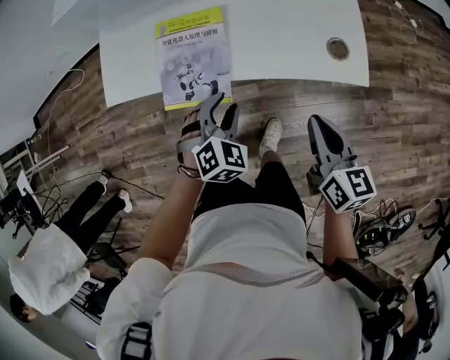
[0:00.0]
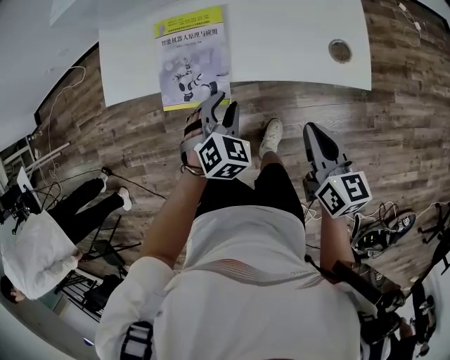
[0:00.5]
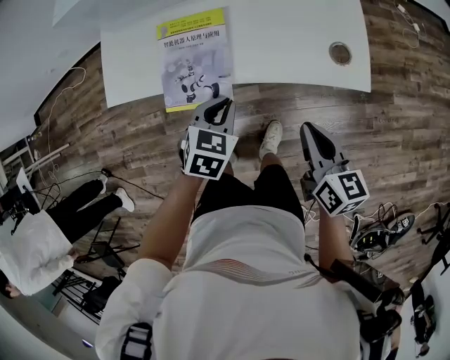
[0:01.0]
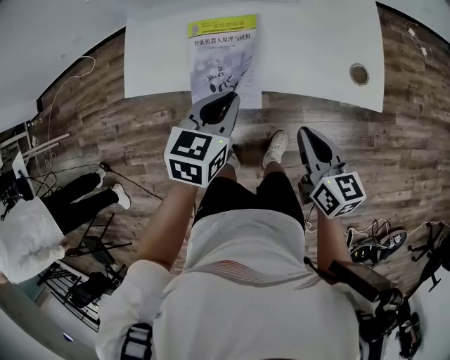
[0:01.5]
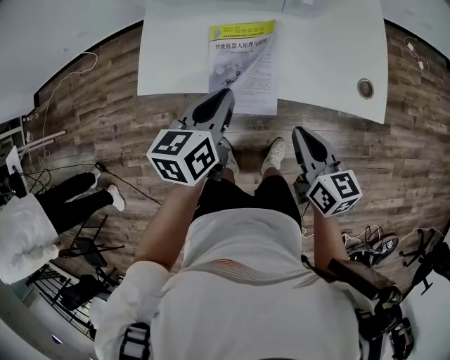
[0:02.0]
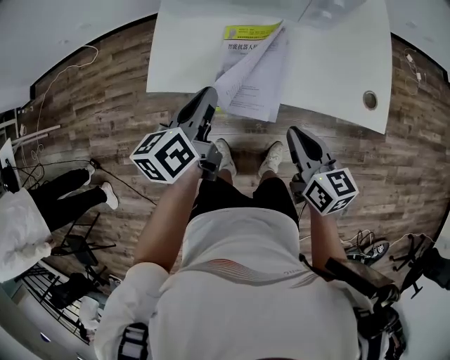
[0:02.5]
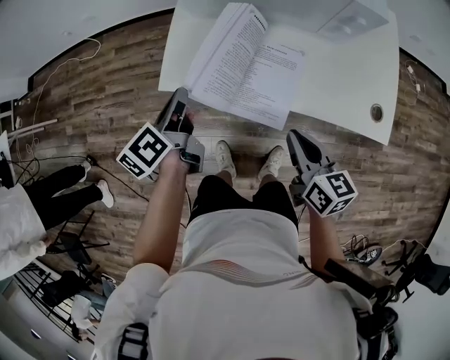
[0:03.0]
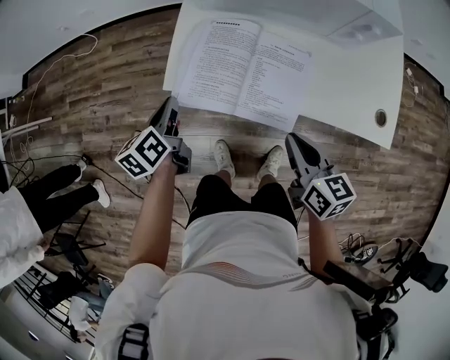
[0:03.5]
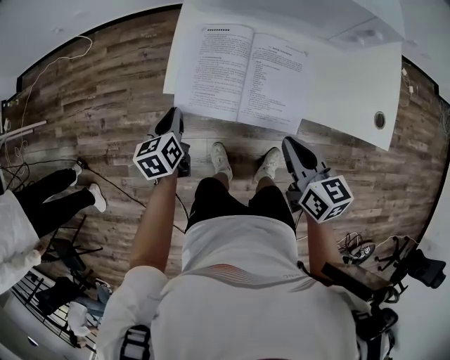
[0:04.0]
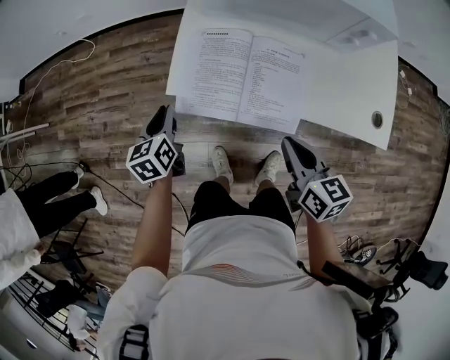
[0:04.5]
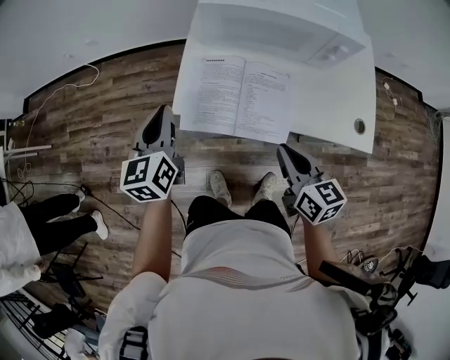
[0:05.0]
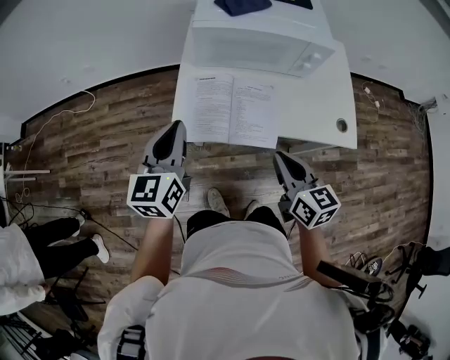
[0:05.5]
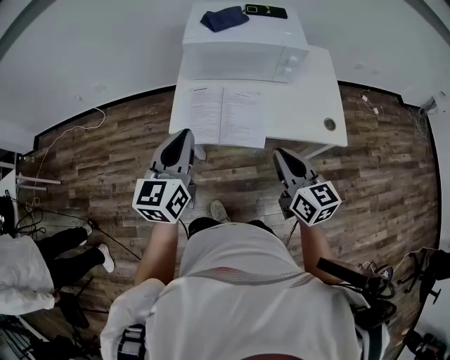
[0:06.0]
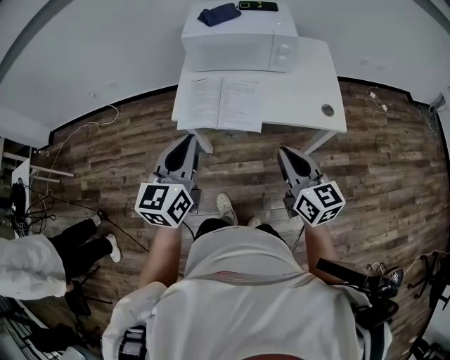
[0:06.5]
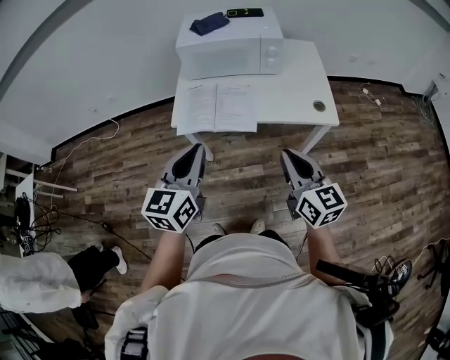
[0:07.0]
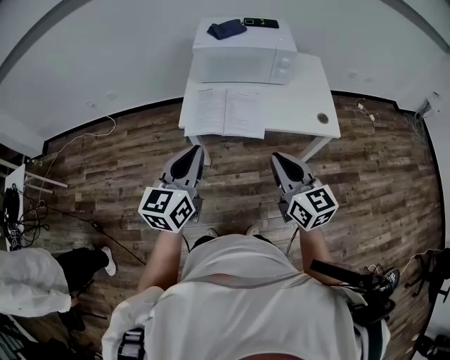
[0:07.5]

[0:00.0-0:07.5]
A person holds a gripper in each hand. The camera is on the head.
0:00.0 to 0:02.0: The right gripper travels to the left by some 15 cm. Meanwhile the left gripper heads upward, to the left and forward, covering about 20 cm, rotates around the line of its fingers by approximately 60 degrees, counterclockwise from behind, and closes its fingers.
0:02.0 to 0:04.0: The left gripper is displaced to the left and downward by about 30 cm, and swivels approximately 30 degrees. The right gripper moves to the left, roughly 15 cm.
0:04.0 to 0:05.5: The left gripper shifts approximately 30 cm upward, and angles its fingers upward, by approximately 30 degrees. The right gripper travels upward by roughly 10 cm.
0:05.5 to 0:07.5: The left gripper heads backward, covering some 20 cm, while the right gripper goes some 20 cm backward and upward.

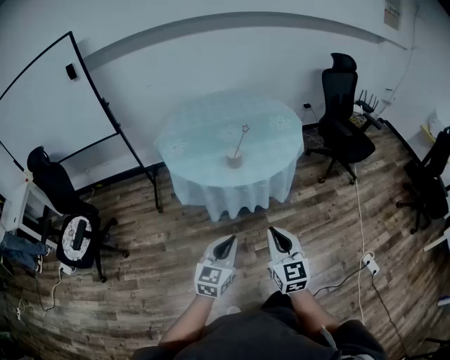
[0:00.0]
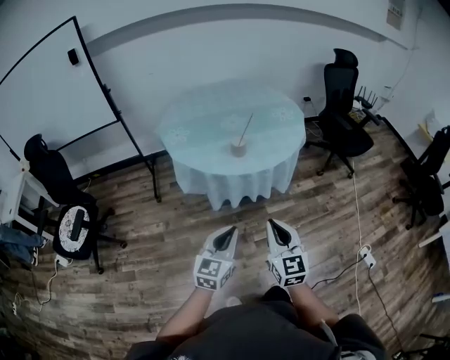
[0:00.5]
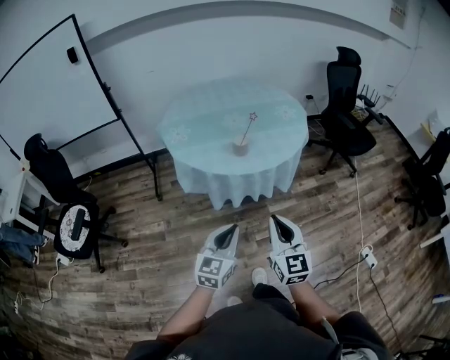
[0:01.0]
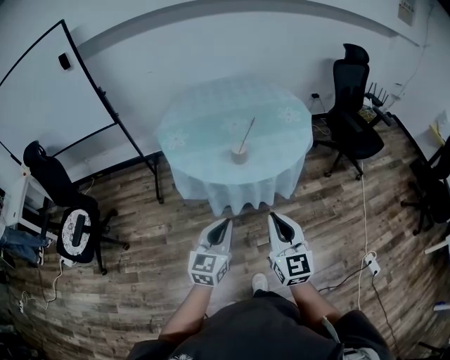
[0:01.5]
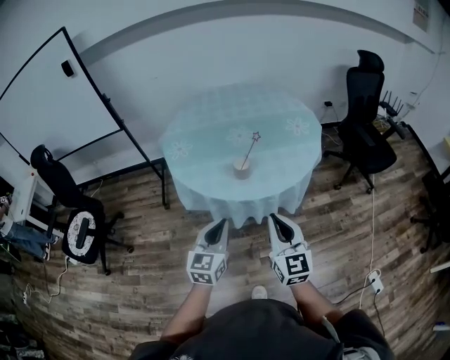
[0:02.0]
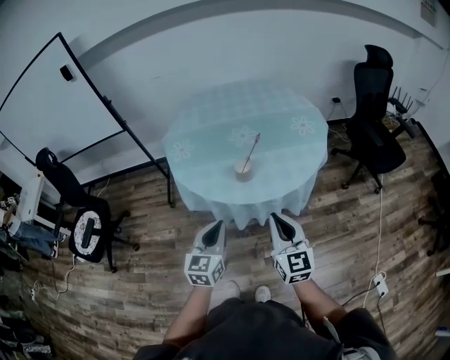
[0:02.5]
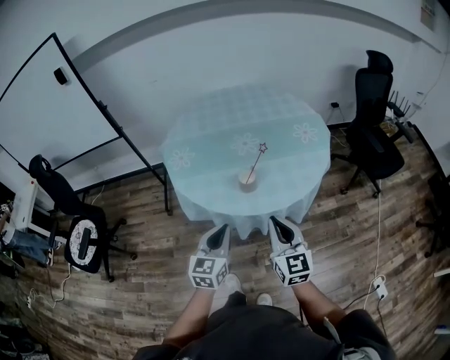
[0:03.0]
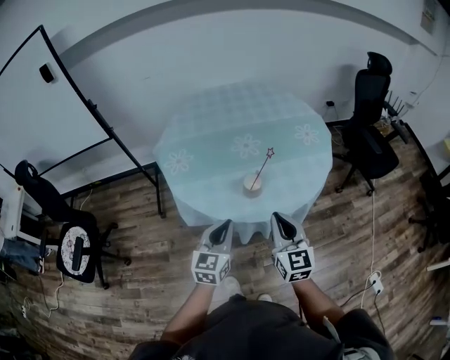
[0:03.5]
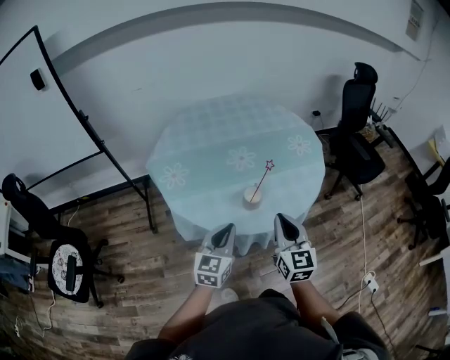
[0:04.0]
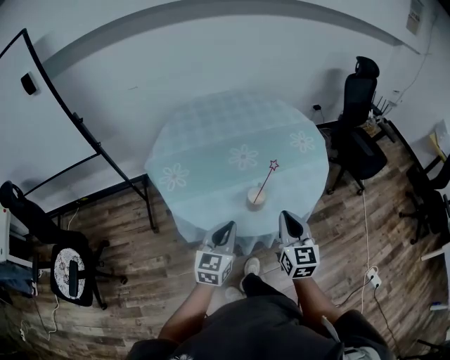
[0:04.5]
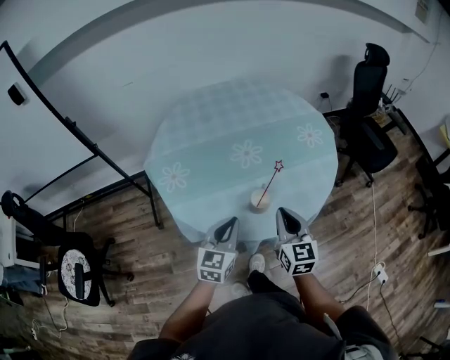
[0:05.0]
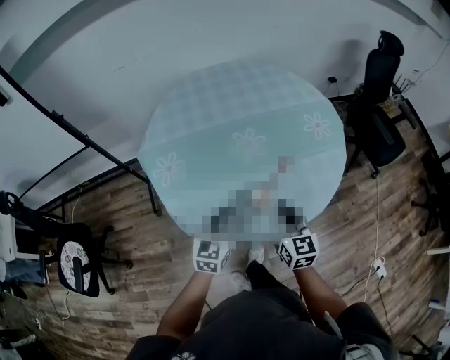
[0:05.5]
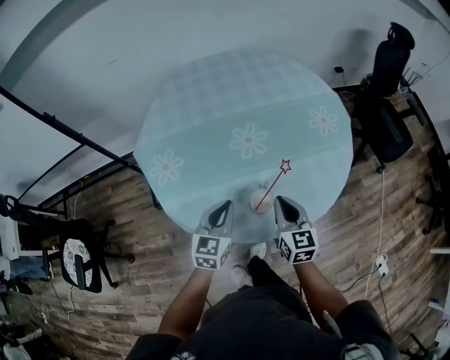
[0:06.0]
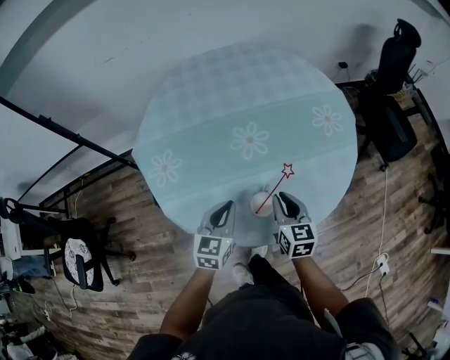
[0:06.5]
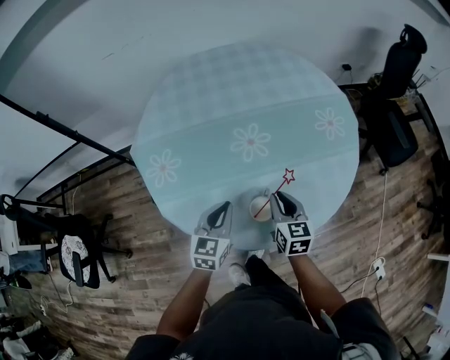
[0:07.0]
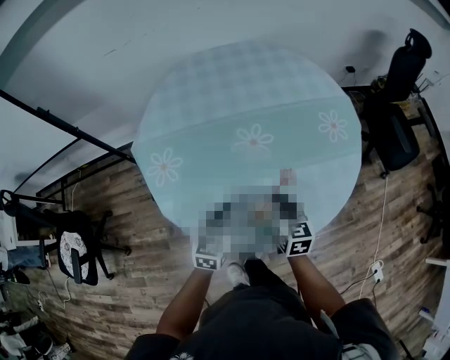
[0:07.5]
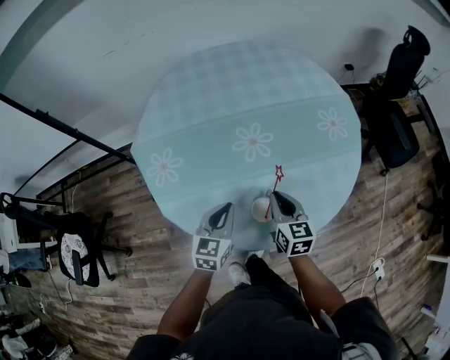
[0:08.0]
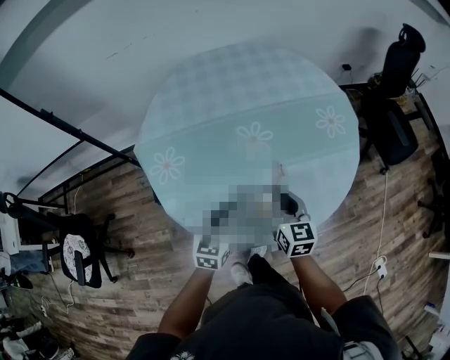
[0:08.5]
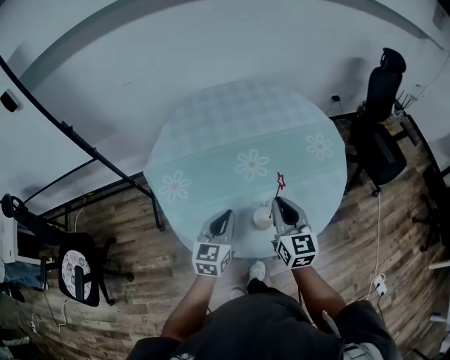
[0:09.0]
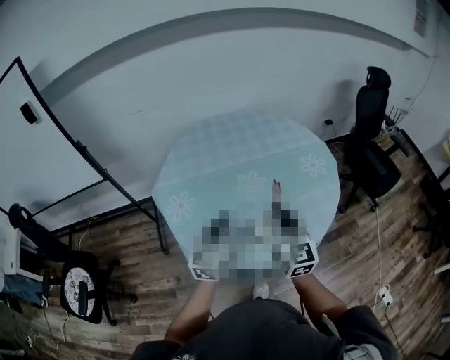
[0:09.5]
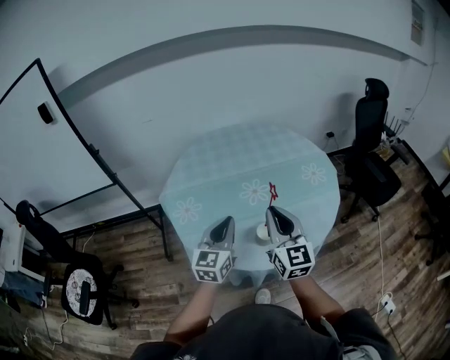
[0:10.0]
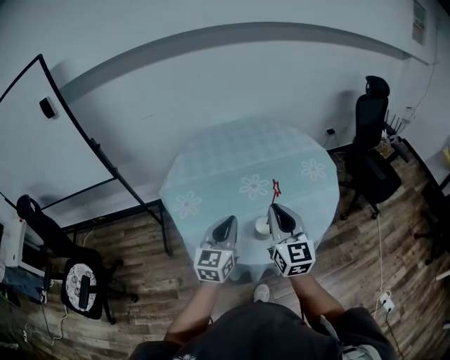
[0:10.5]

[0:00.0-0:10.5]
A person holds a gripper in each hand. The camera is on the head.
0:00.0 to 0:02.0: The two grippers go approximately 20 cm forward.
0:02.0 to 0:04.0: Both grippers travel together forward and to the left, some 20 cm.
0:04.0 to 0:06.5: Both grippers move forward and downward, approximately 25 cm. The right gripper rotates roughly 20 degrees.
0:06.5 to 0:08.5: There are only small adjustments of the grippers.
0:08.5 to 0:10.5: The grippers both shift upward and backward by about 25 cm. The left gripper changes its angle by some 20 degrees. The right gripper rotates about 30 degrees.

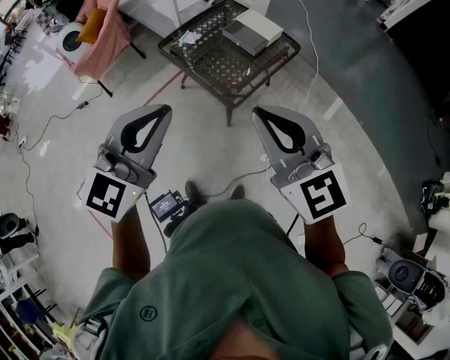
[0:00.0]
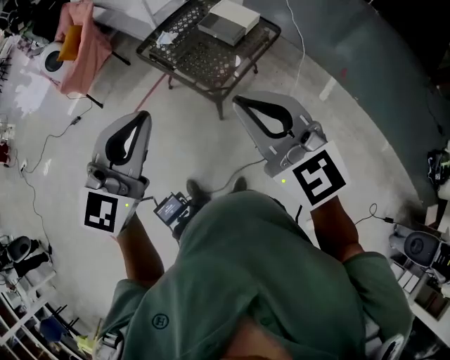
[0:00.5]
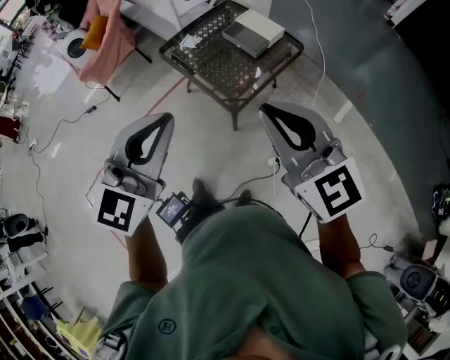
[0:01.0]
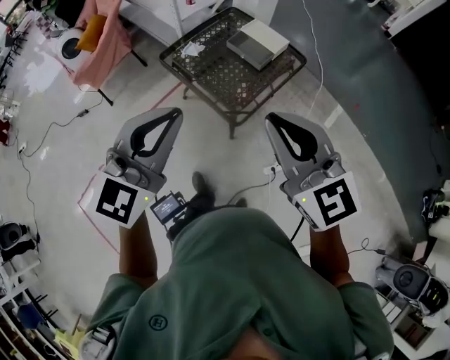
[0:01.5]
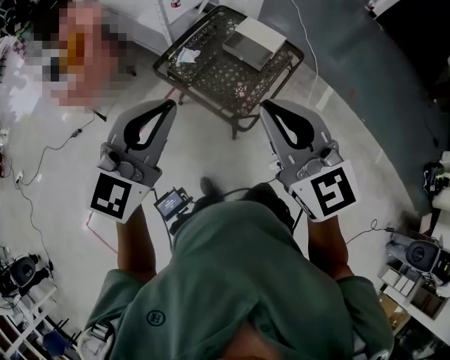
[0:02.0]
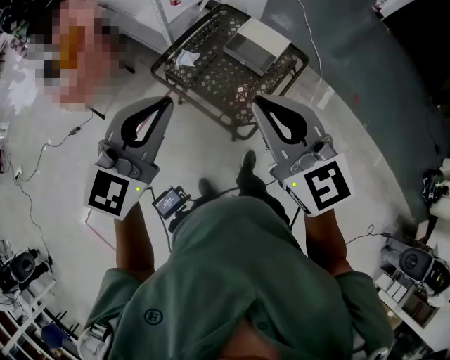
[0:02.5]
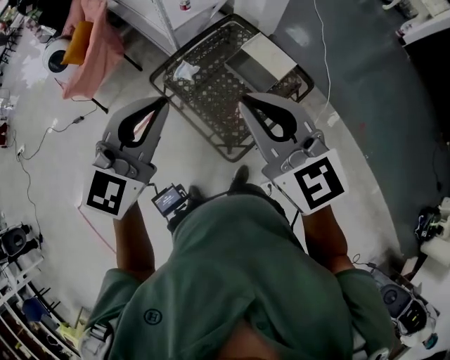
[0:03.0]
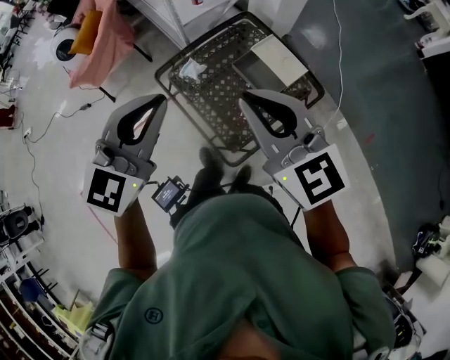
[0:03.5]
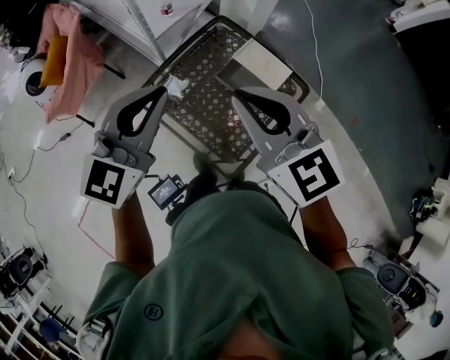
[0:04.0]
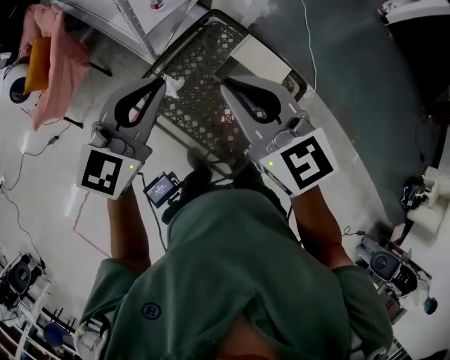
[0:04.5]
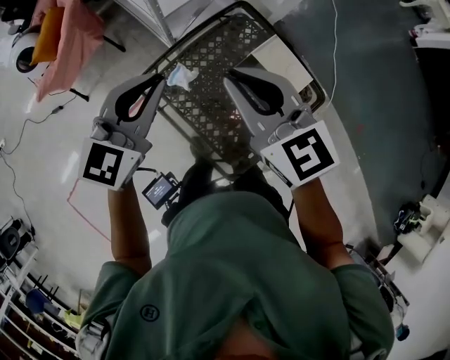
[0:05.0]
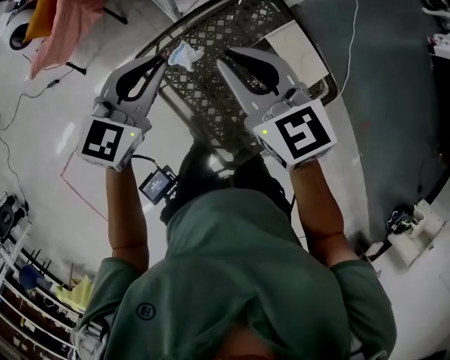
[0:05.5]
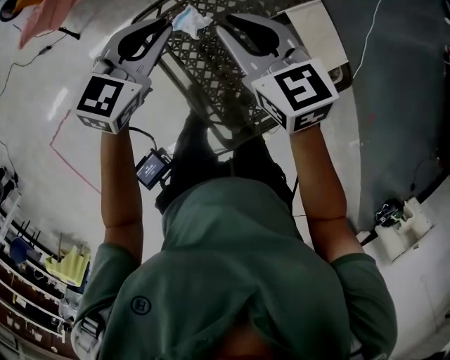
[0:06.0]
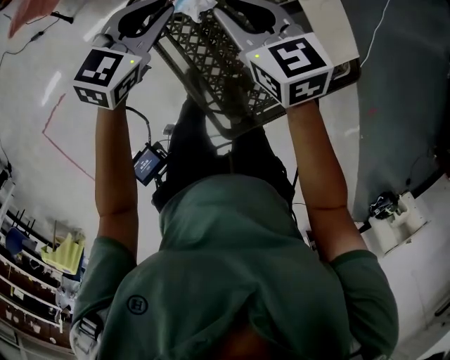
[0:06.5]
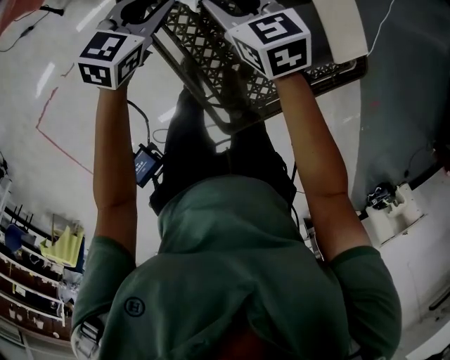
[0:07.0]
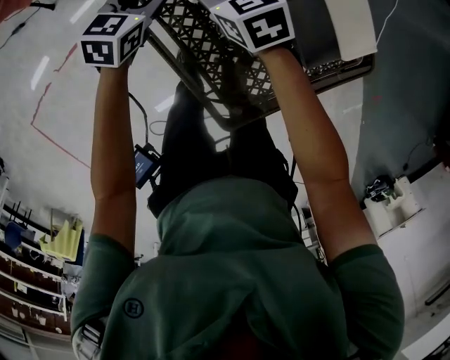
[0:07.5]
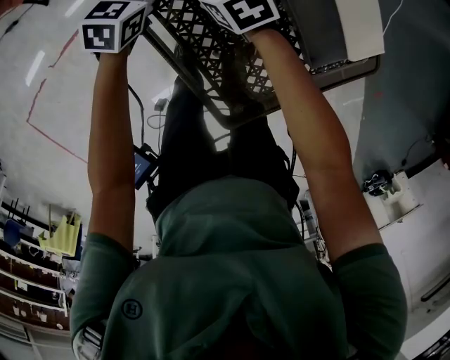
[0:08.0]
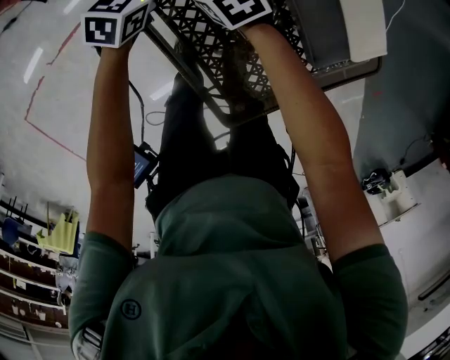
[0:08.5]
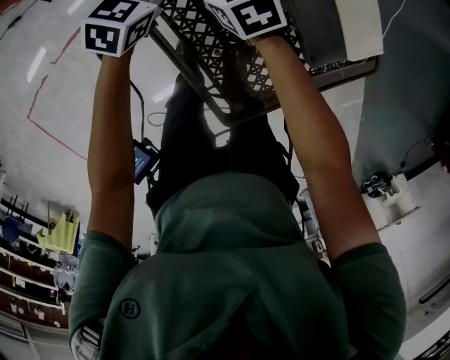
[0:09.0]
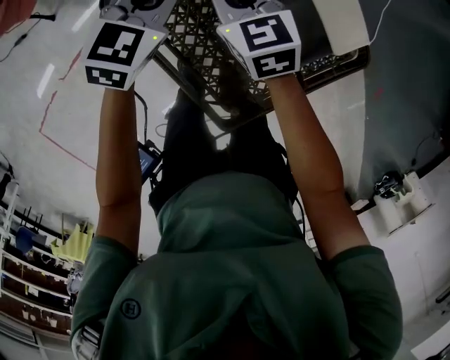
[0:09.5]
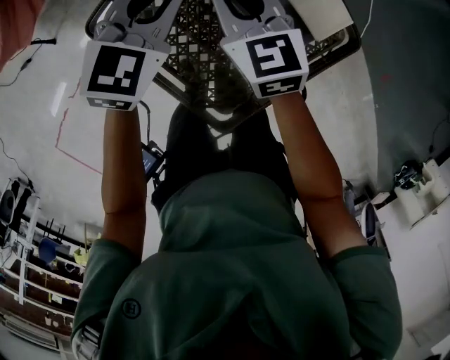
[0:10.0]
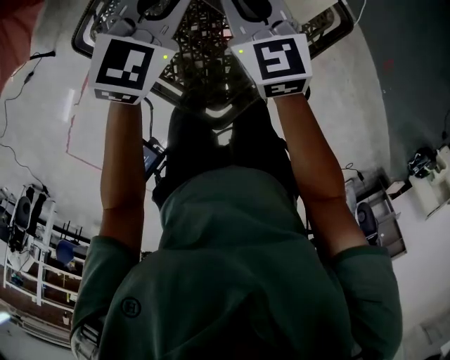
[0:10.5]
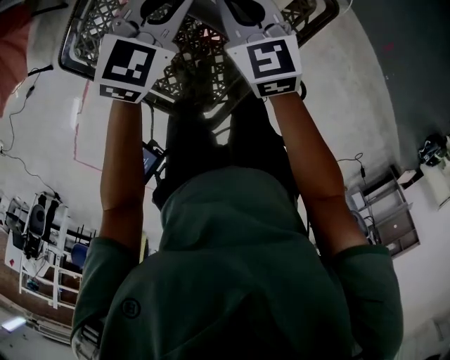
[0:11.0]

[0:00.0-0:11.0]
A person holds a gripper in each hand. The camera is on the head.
0:00.0 to 0:02.0: The two grippers go approximately 20 cm forward and to the left.
0:02.0 to 0:03.5: The left gripper is displaced forward and to the right by about 25 cm, while the right gripper travels forward by roughly 25 cm.
0:03.5 to 0:05.5: The right gripper heads forward, downward and to the left, covering approximately 30 cm. Meanwhile the left gripper heads forward and downward, covering roughly 30 cm.
0:05.5 to 0:07.5: Both grippers travel together downward, about 35 cm. The right gripper swivels about 30 degrees, and opens up; the left gripper swivels about 20 degrees, and opens.
0:07.5 to 0:09.0: The right gripper closes. Meanwhile the left gripper closes its fingers.
0:09.0 to 0:11.0: Both grippers travel together to the right and upward, some 20 cm. The left gripper changes its angle by some 30 degrees. The right gripper turns by some 30 degrees.
